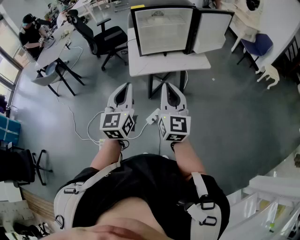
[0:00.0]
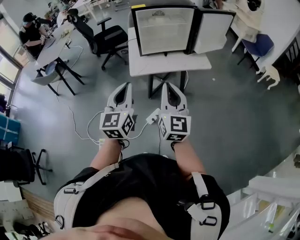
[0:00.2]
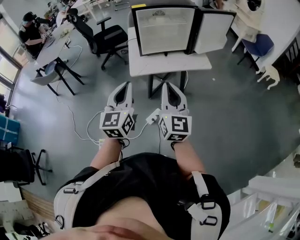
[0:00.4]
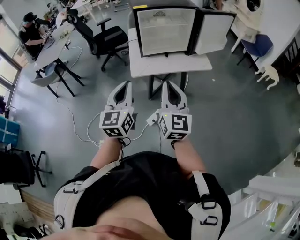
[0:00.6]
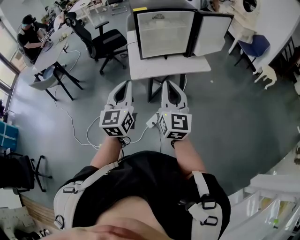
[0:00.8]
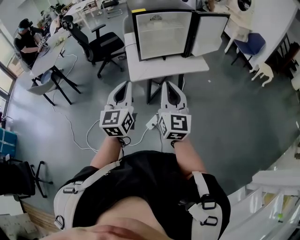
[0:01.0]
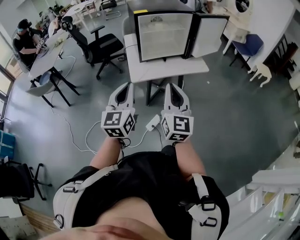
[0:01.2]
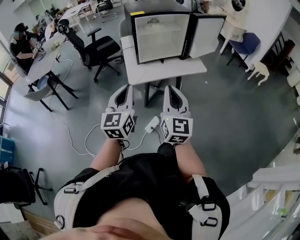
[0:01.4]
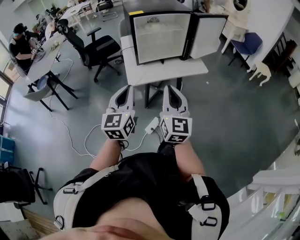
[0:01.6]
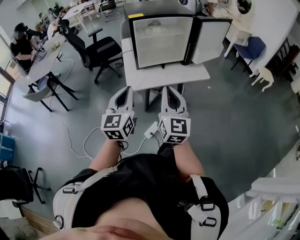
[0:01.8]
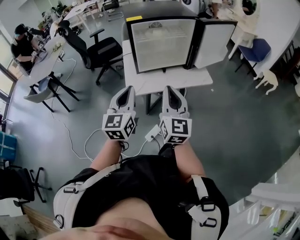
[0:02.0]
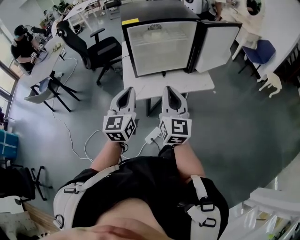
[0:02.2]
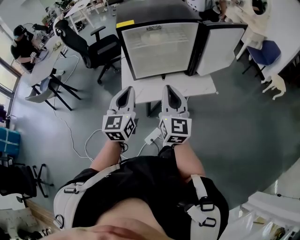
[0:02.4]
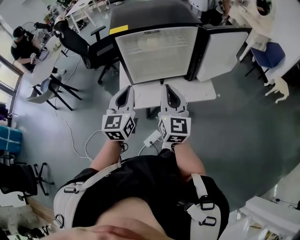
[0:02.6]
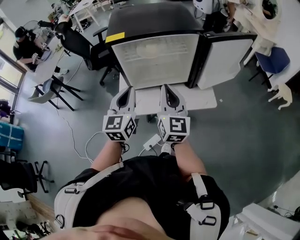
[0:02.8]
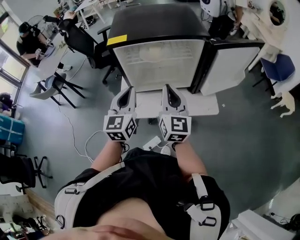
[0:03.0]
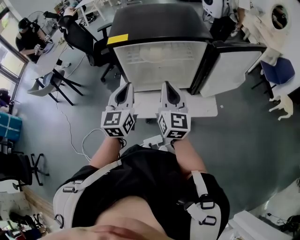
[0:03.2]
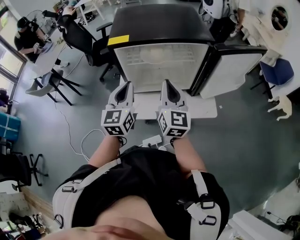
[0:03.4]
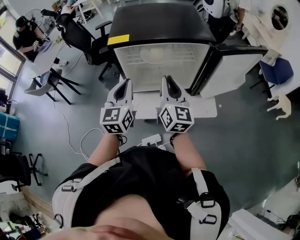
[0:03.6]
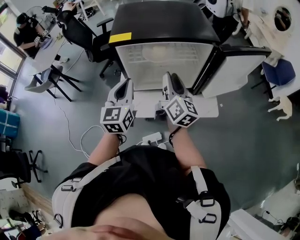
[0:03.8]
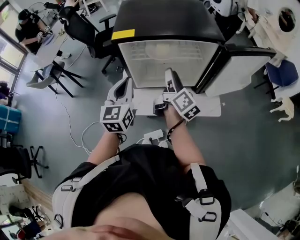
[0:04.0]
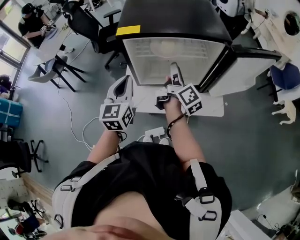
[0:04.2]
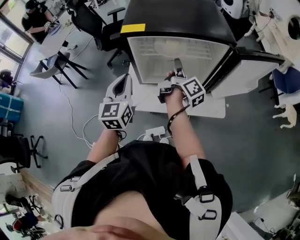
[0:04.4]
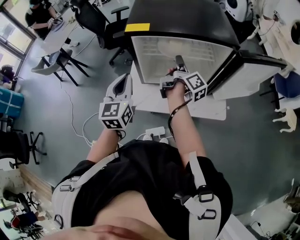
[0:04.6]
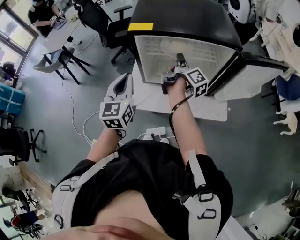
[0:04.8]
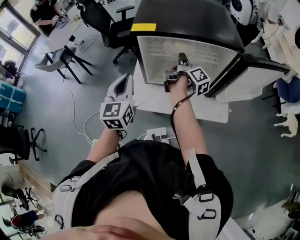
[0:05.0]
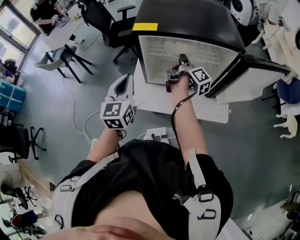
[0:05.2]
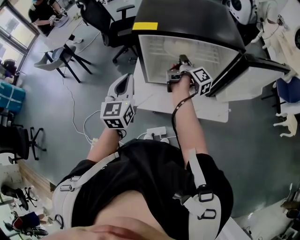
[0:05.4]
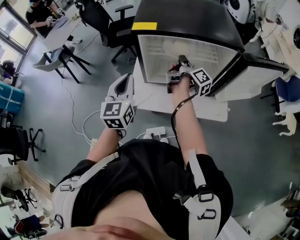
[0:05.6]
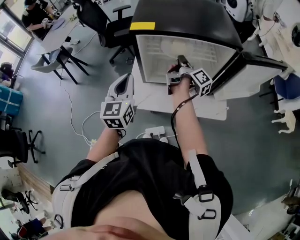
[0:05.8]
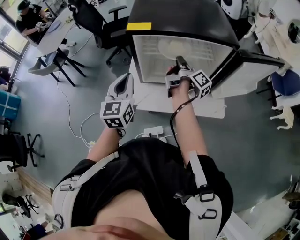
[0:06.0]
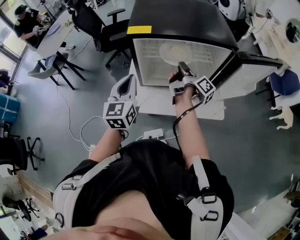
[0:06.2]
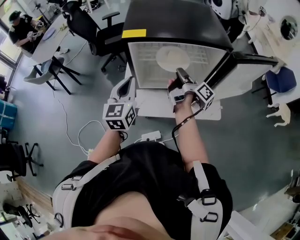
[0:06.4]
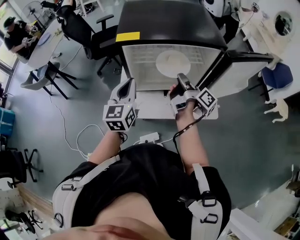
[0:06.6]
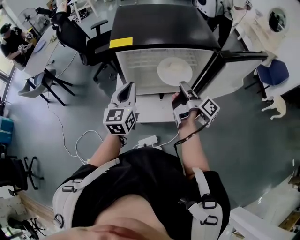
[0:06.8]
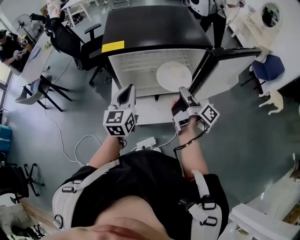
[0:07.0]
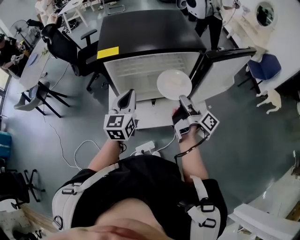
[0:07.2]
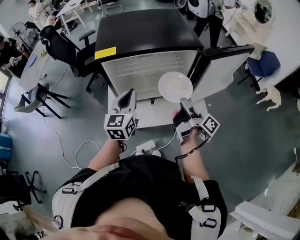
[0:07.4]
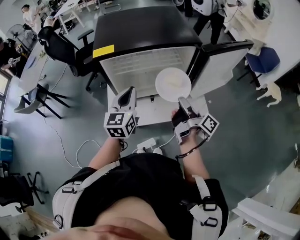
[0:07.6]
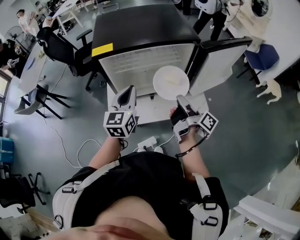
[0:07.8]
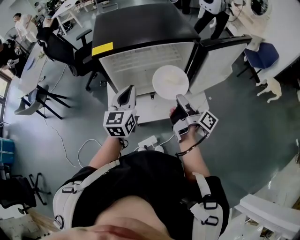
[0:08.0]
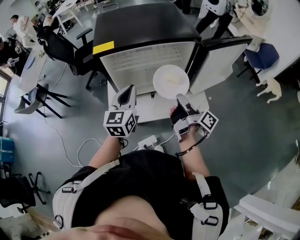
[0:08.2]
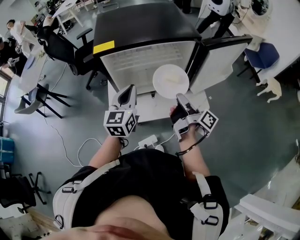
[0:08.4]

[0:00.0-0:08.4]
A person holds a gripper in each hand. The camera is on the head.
0:00.0 to 0:01.4: The left gripper heads to the left, covering some 5 cm.
0:01.4 to 0:02.8: The two grippers go some 30 cm forward.
0:02.8 to 0:04.2: The left gripper is displaced forward and to the left by approximately 10 cm. The right gripper shifts roughly 15 cm forward, twists roughly 60 degrees clockwise, seen from behind, and opens up.
0:04.2 to 0:05.6: The right gripper travels forward by approximately 5 cm, rotates some 20 degrees, and closes its fingers.
0:05.6 to 0:07.0: The left gripper is displaced to the right by some 10 cm, while the right gripper travels backward and to the right by roughly 15 cm.
0:07.0 to 0:08.4: The right gripper is displaced backward by approximately 5 cm.

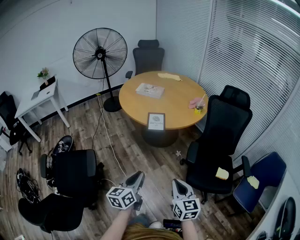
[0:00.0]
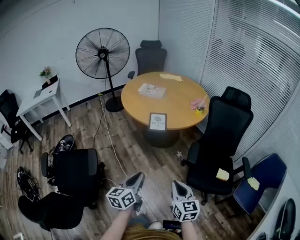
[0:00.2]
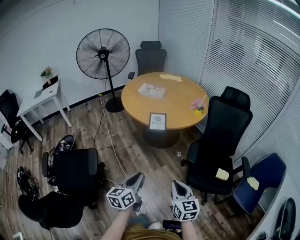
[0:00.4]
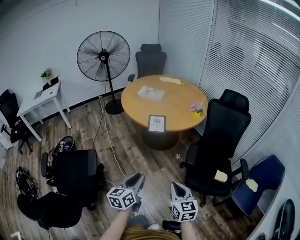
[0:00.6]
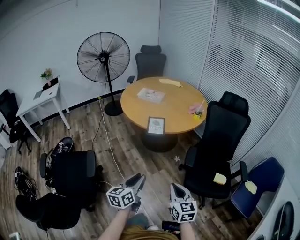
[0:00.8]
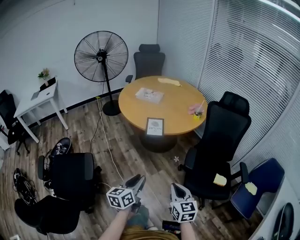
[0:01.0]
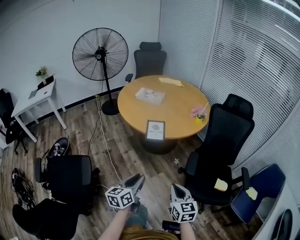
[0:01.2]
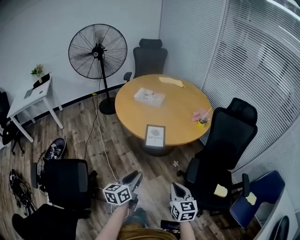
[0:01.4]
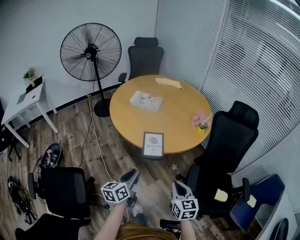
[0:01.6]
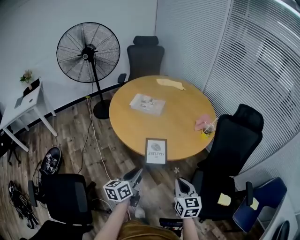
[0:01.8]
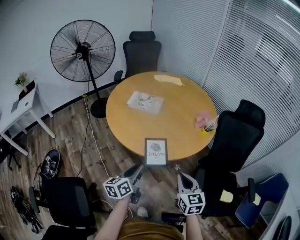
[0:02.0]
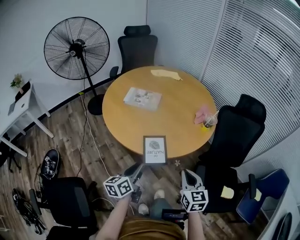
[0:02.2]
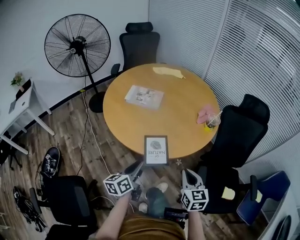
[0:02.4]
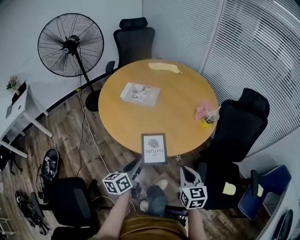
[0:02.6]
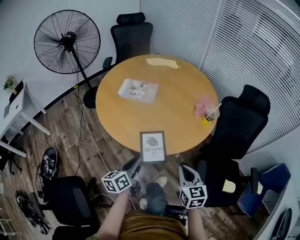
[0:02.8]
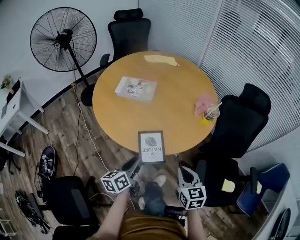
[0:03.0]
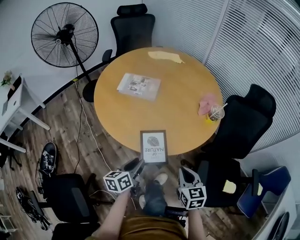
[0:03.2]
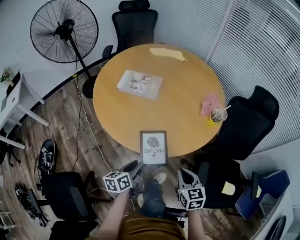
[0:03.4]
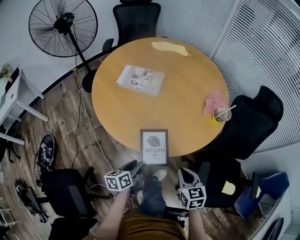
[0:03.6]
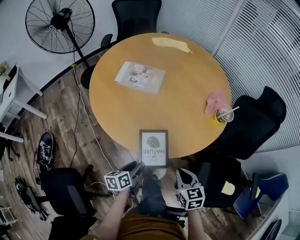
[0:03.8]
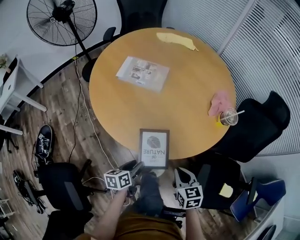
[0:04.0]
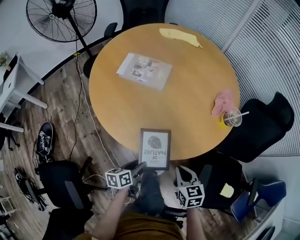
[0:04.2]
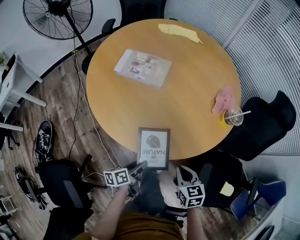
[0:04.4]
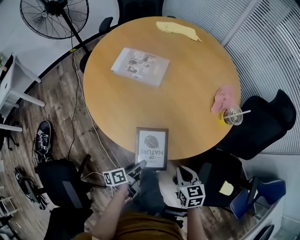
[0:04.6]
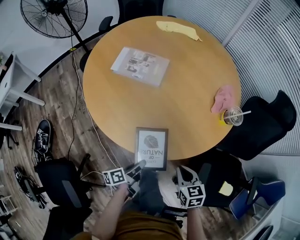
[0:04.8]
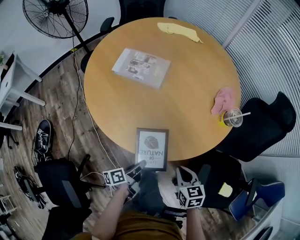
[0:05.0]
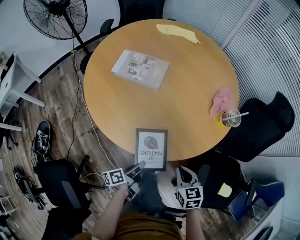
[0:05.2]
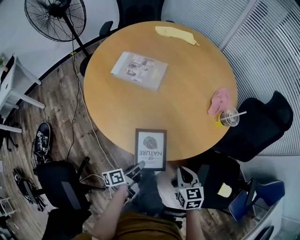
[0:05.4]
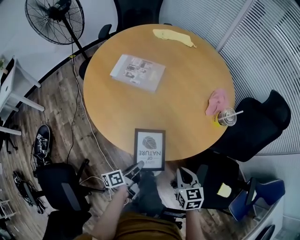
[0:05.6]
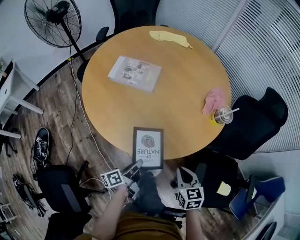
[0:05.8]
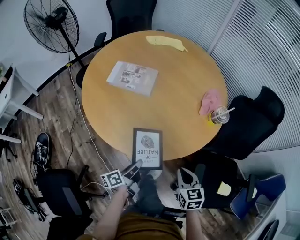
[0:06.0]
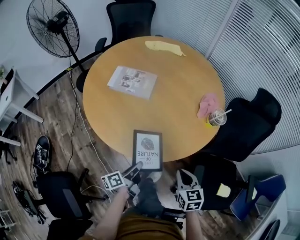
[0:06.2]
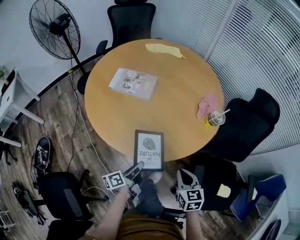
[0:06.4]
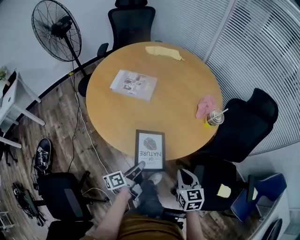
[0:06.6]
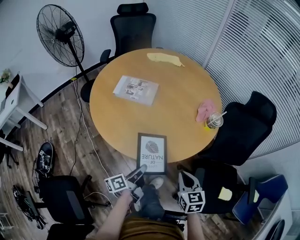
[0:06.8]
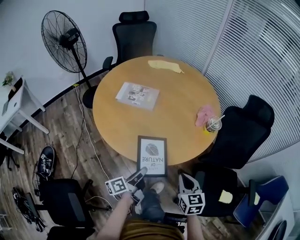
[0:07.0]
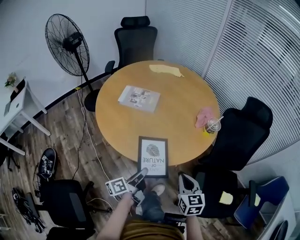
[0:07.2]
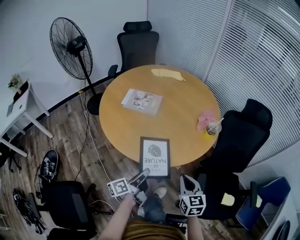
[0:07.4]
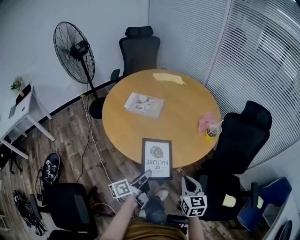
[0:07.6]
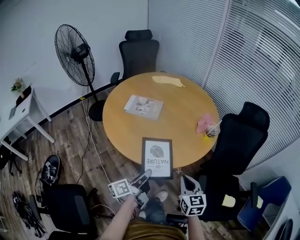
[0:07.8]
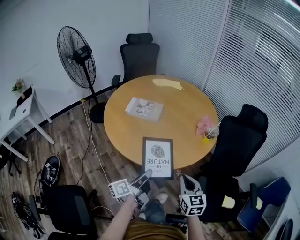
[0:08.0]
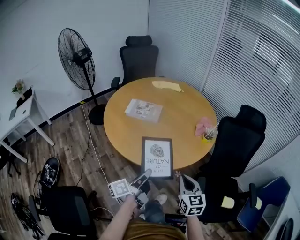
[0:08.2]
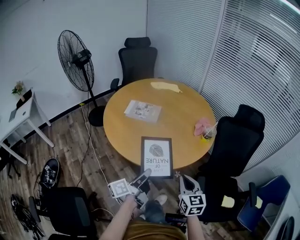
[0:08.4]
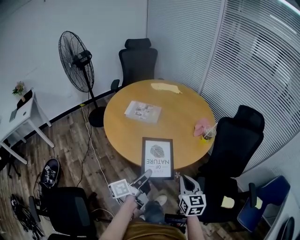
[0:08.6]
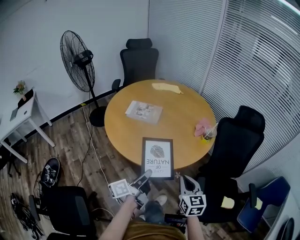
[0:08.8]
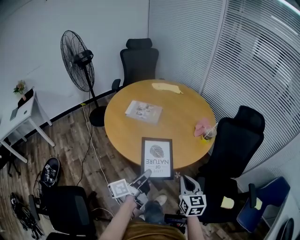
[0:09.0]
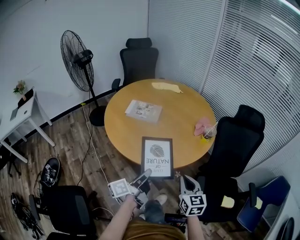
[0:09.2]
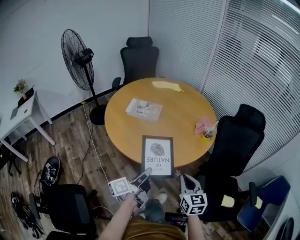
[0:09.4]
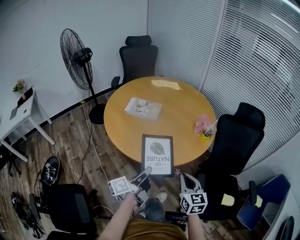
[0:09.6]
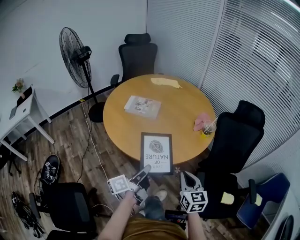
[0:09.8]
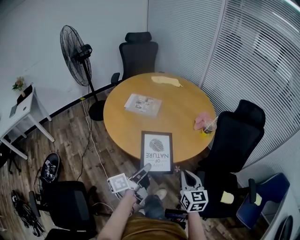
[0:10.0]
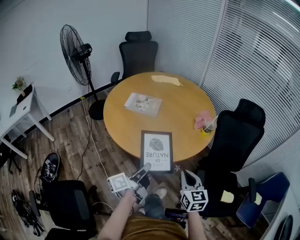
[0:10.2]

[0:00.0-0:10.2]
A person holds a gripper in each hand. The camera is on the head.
0:00.0 to 0:01.4: The two grippers go about 15 cm forward.
0:01.4 to 0:03.0: The grippers both shift forward by approximately 25 cm.
0:03.0 to 0:04.4: The right gripper goes approximately 15 cm downward and forward. The left gripper travels downward by approximately 15 cm, swivels roughly 30 degrees, and opens.
0:04.4 to 0:05.8: The left gripper closes.
0:05.8 to 0:07.2: The two grippers go some 10 cm upward.
0:07.2 to 0:08.8: The left gripper heads upward and backward, covering approximately 10 cm; the right gripper shifts approximately 5 cm upward.

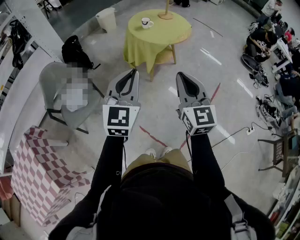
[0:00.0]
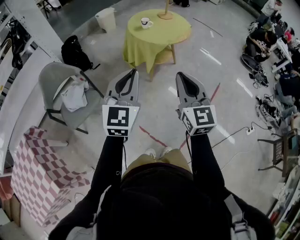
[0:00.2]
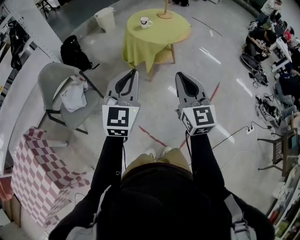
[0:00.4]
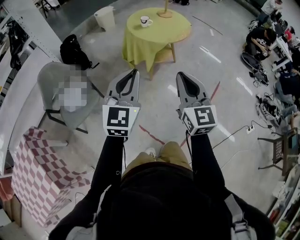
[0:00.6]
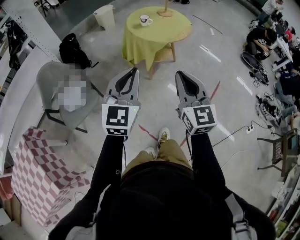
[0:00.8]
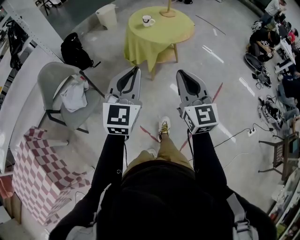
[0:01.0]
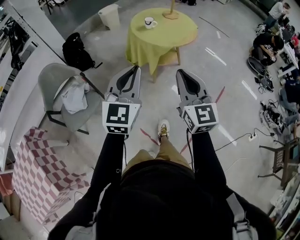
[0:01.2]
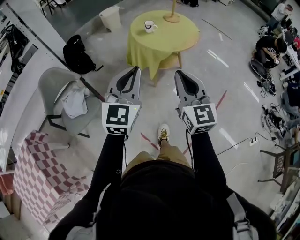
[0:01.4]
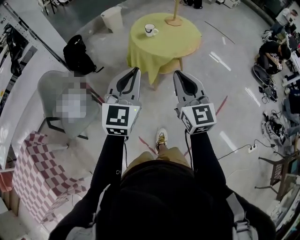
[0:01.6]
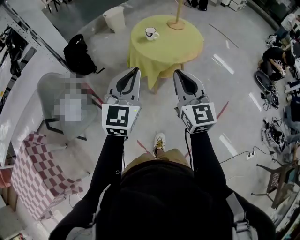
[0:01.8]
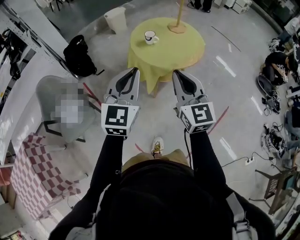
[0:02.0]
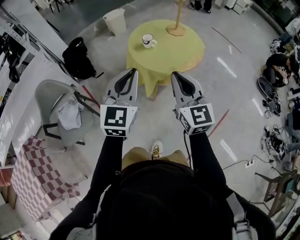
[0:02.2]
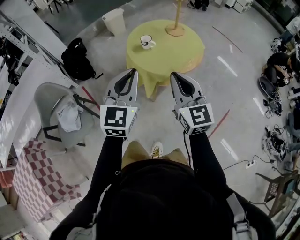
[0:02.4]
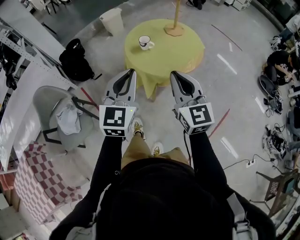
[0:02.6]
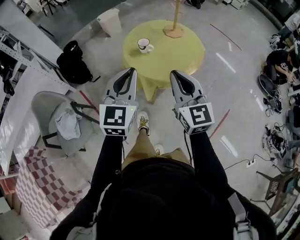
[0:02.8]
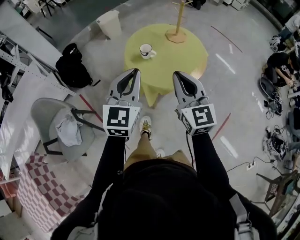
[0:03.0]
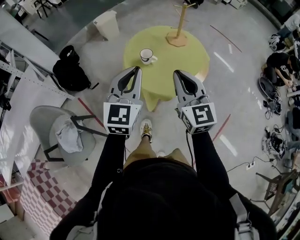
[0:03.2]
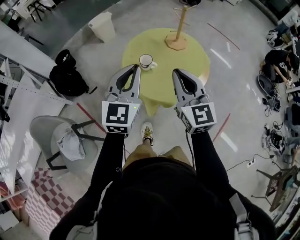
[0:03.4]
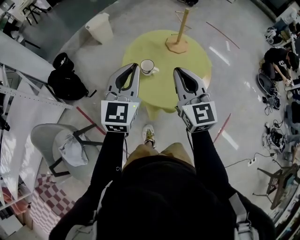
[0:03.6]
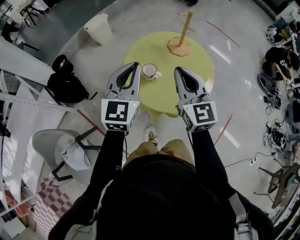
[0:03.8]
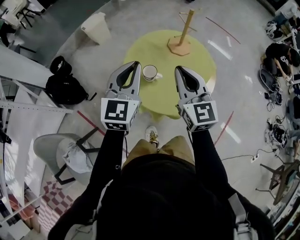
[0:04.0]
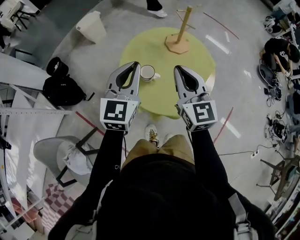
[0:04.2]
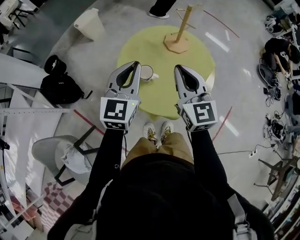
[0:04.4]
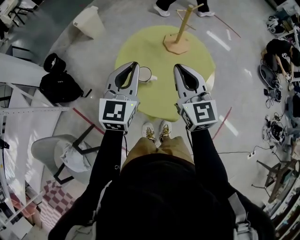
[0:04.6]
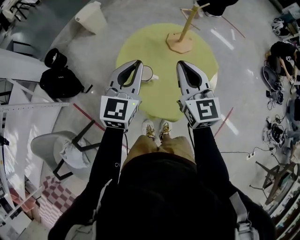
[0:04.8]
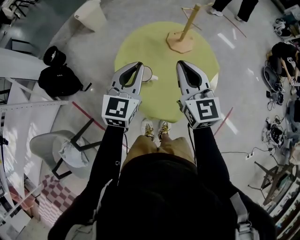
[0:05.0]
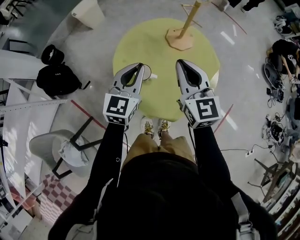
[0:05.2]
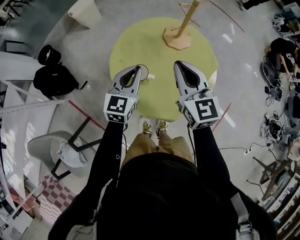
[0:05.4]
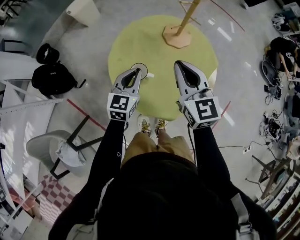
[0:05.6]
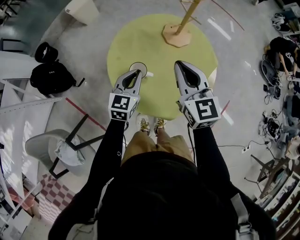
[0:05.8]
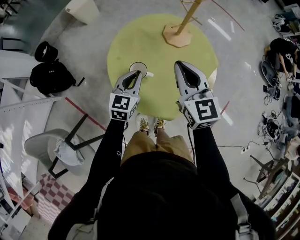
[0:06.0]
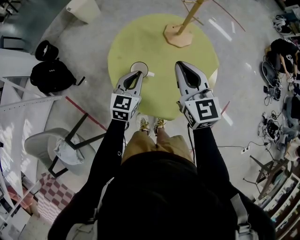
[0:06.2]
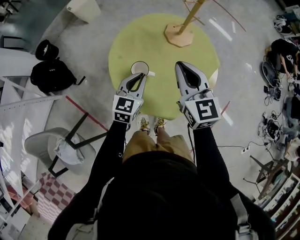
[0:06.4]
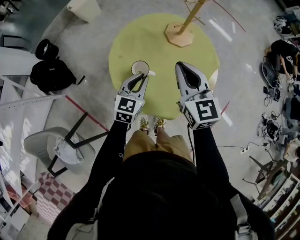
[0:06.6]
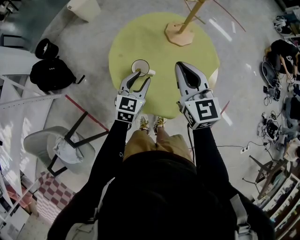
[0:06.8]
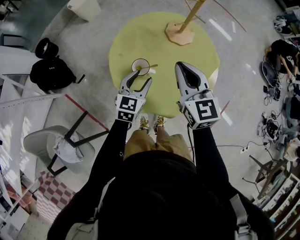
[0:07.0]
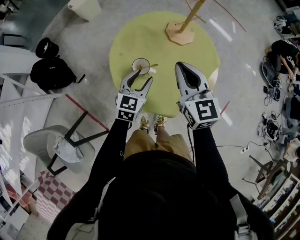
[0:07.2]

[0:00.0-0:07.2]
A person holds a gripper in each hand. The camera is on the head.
0:00.0 to 0:01.4: The grippers both shift forward by approximately 10 cm.
0:01.4 to 0:02.8: The two grippers go about 25 cm forward.
0:02.8 to 0:04.4: Both grippers travel together forward, roughly 25 cm.
0:04.4 to 0:05.8: The left gripper shifts roughly 20 cm downward, while the right gripper shifts about 5 cm downward.
0:05.8 to 0:07.2: The left gripper opens its fingers.
